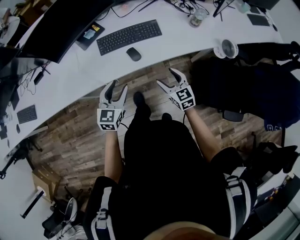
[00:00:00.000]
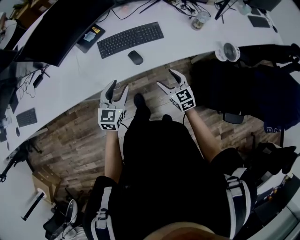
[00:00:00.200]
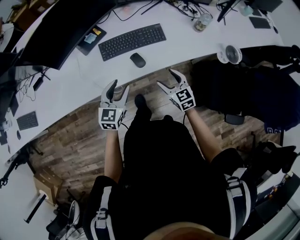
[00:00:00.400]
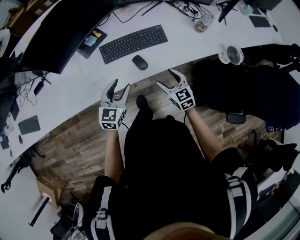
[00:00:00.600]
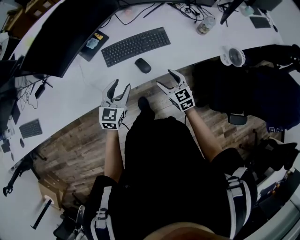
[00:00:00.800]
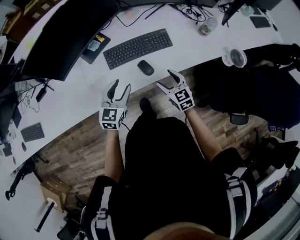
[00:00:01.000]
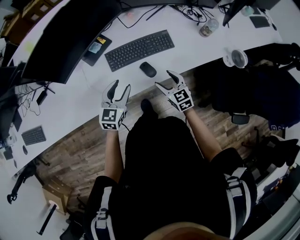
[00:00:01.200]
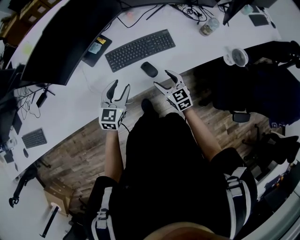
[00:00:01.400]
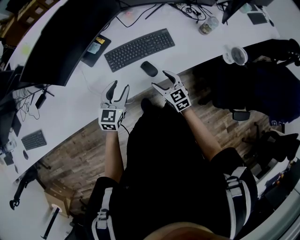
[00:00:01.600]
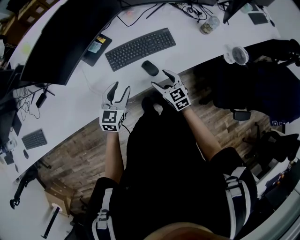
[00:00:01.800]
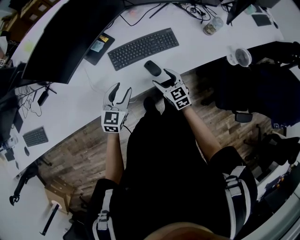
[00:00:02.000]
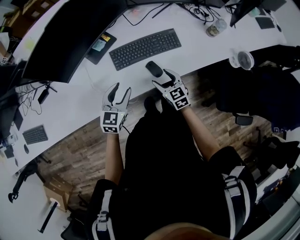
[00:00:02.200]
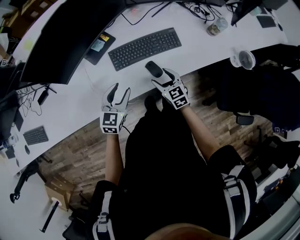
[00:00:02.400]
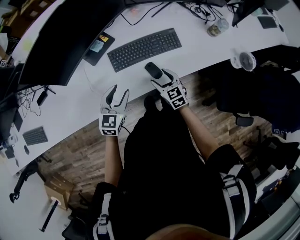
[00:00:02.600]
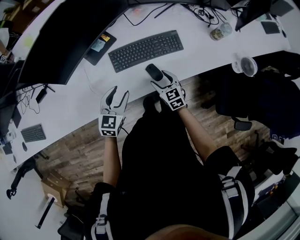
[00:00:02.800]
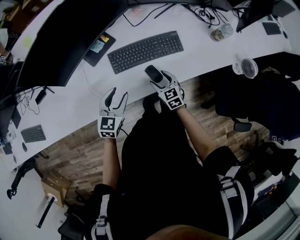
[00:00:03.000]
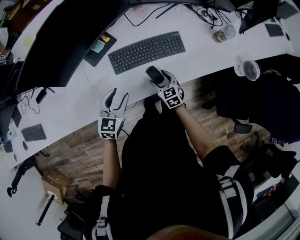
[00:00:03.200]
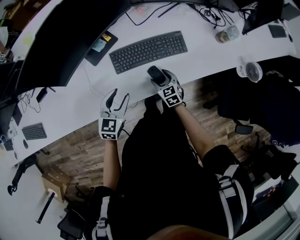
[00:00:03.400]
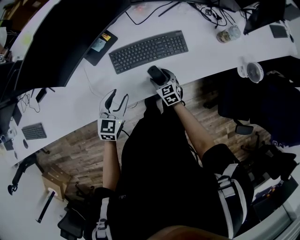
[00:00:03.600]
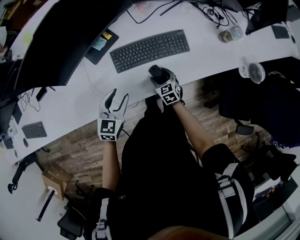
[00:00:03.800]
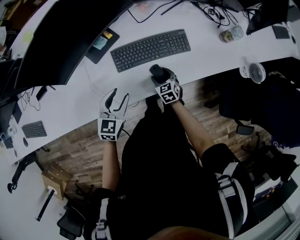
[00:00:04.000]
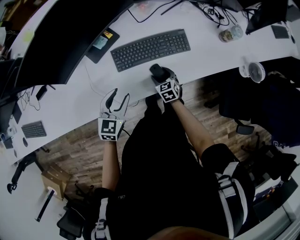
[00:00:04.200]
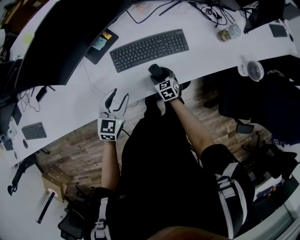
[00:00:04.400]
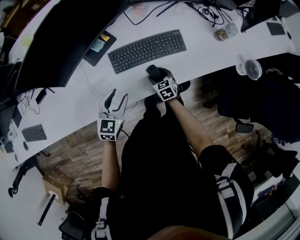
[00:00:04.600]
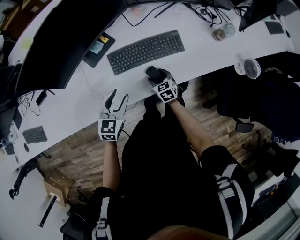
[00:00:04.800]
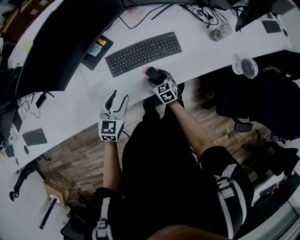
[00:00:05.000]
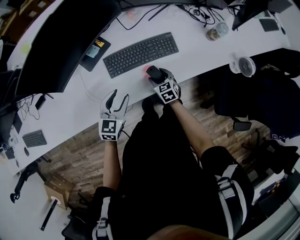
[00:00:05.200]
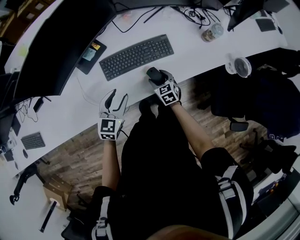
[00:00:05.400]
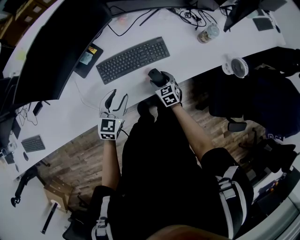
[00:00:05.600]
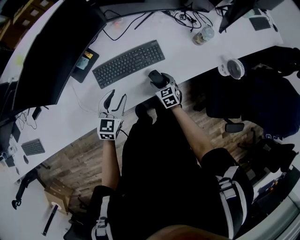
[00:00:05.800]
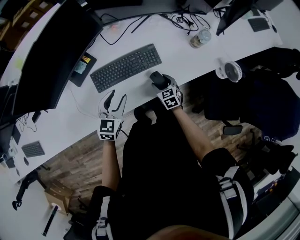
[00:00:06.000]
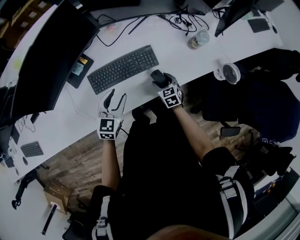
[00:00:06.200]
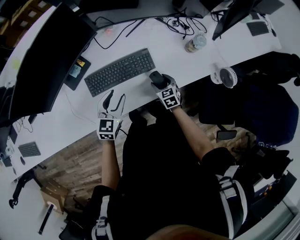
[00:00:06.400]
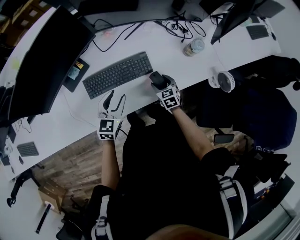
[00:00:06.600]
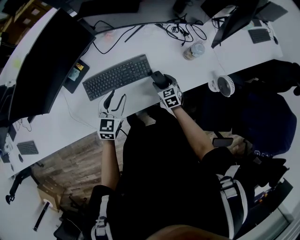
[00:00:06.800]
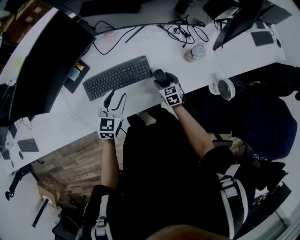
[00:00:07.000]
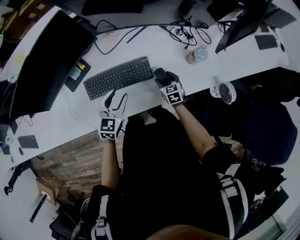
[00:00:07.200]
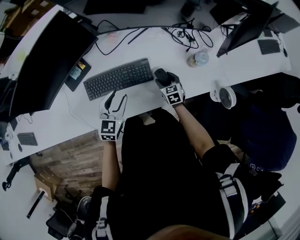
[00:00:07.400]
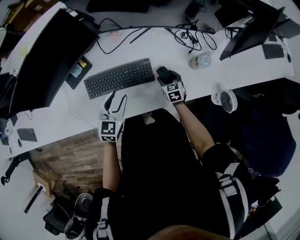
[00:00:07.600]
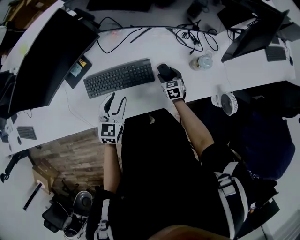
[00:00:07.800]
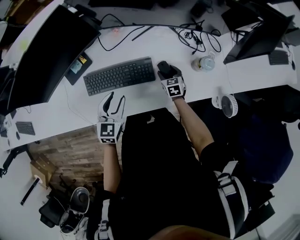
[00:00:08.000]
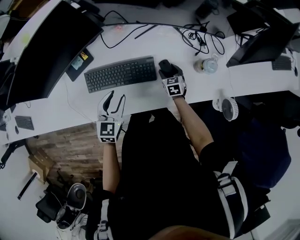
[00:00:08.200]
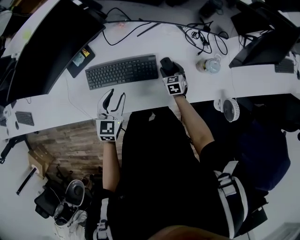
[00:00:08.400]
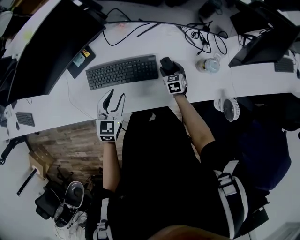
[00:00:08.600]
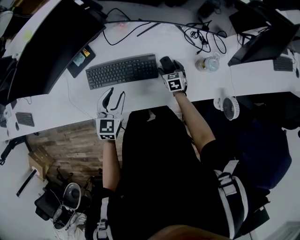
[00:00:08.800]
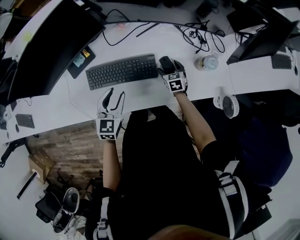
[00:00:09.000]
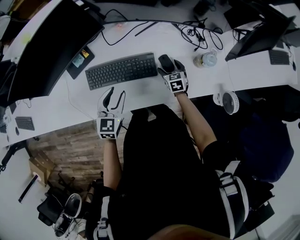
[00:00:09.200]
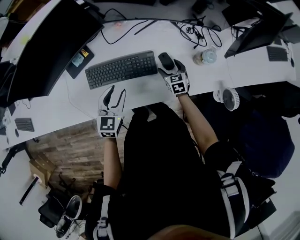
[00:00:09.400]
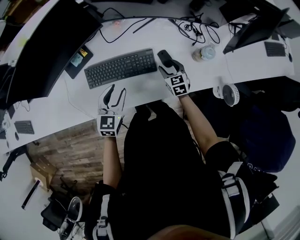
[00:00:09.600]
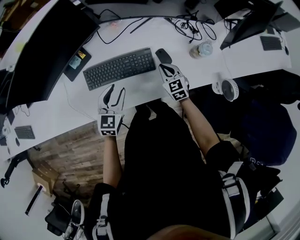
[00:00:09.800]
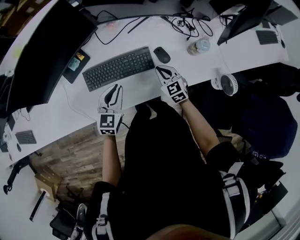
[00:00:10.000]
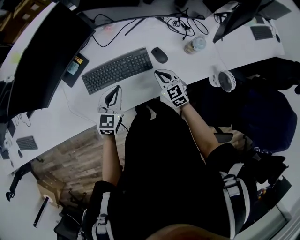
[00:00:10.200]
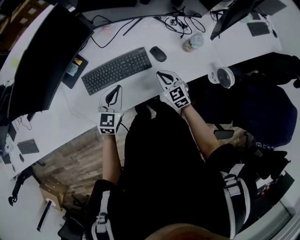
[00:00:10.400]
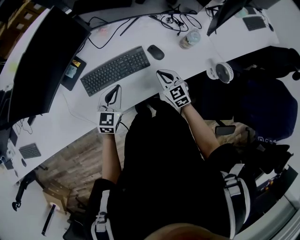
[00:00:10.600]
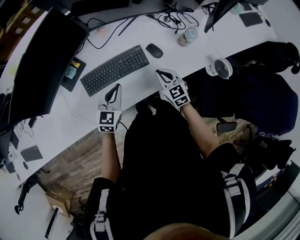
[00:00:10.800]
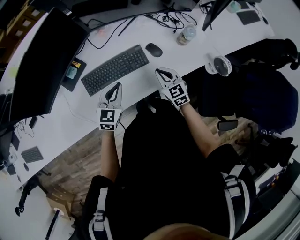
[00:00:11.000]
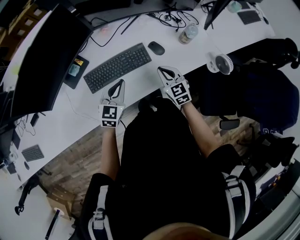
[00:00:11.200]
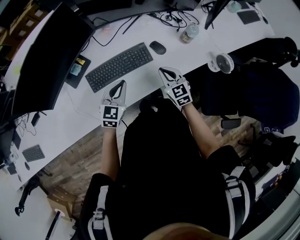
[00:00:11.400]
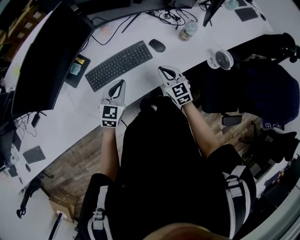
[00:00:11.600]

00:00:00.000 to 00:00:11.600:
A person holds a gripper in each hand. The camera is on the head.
00:00:00.000 to 00:00:01.400: Both grippers travel together forward and to the left, roughly 15 cm.
00:00:01.400 to 00:00:02.800: The right gripper shifts approximately 5 cm downward.
00:00:02.800 to 00:00:04.400: The right gripper travels downward by some 10 cm.
00:00:04.400 to 00:00:05.800: The right gripper heads to the right and upward, covering roughly 15 cm; the left gripper heads to the right, covering roughly 10 cm.
00:00:05.800 to 00:00:07.200: Both grippers travel together to the right and forward, about 15 cm.
00:00:07.200 to 00:00:08.800: The right gripper travels forward and downward by some 10 cm.
00:00:08.800 to 00:00:10.200: The left gripper closes up; the right gripper goes about 20 cm upward and backward, rotates about 20 degrees, and closes up.
00:00:10.200 to 00:00:11.600: The right gripper is displaced backward by roughly 5 cm.

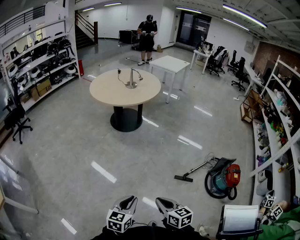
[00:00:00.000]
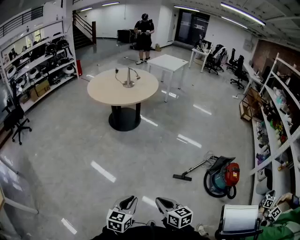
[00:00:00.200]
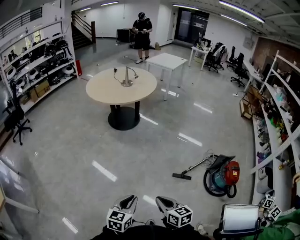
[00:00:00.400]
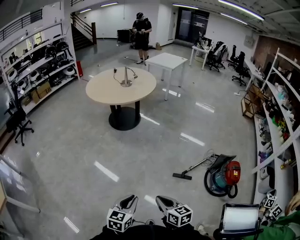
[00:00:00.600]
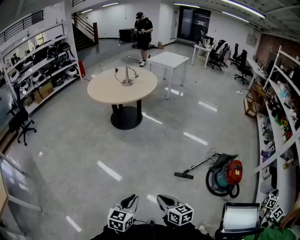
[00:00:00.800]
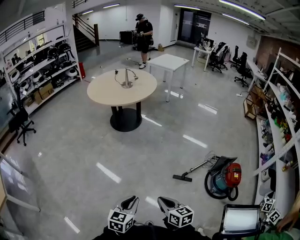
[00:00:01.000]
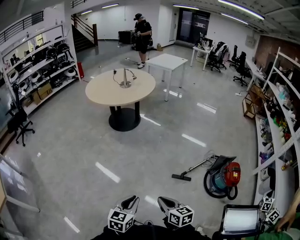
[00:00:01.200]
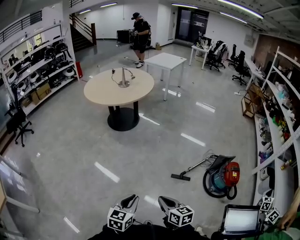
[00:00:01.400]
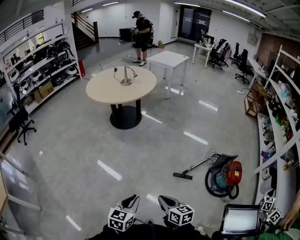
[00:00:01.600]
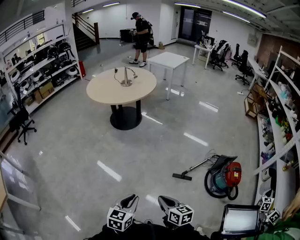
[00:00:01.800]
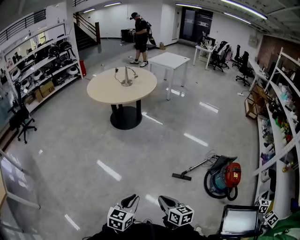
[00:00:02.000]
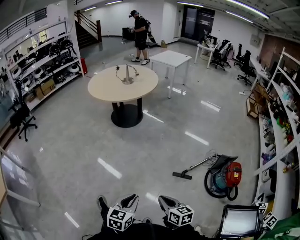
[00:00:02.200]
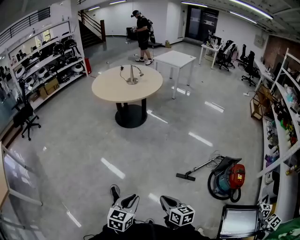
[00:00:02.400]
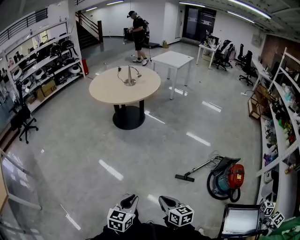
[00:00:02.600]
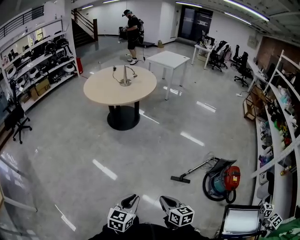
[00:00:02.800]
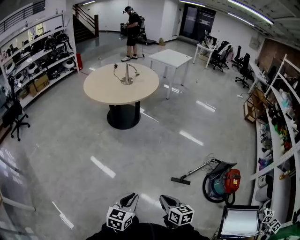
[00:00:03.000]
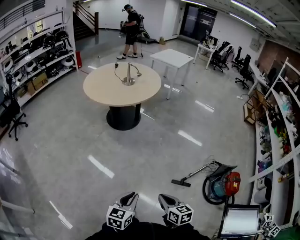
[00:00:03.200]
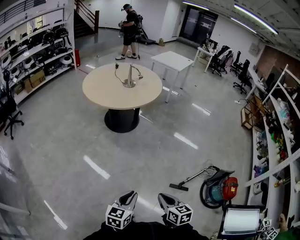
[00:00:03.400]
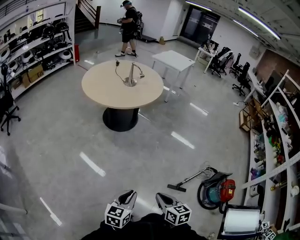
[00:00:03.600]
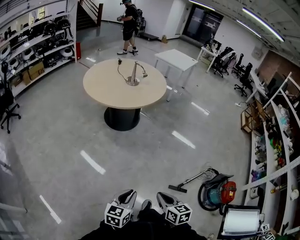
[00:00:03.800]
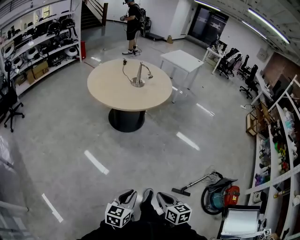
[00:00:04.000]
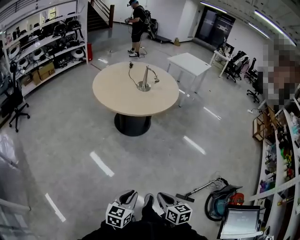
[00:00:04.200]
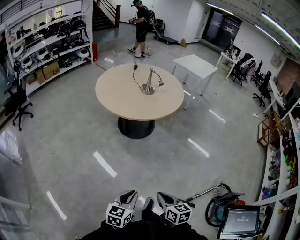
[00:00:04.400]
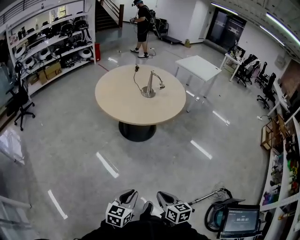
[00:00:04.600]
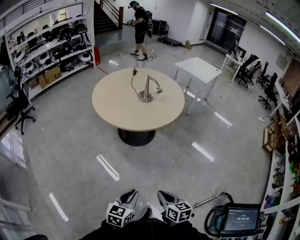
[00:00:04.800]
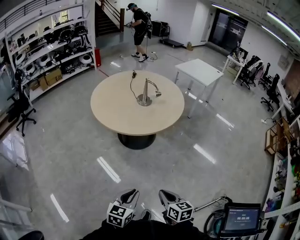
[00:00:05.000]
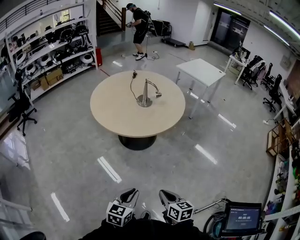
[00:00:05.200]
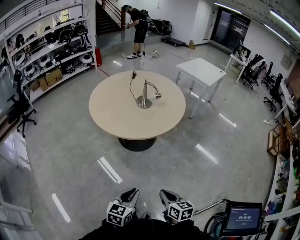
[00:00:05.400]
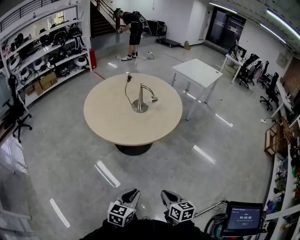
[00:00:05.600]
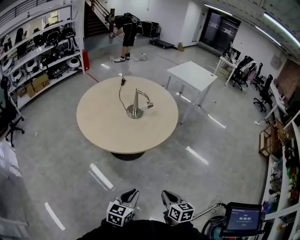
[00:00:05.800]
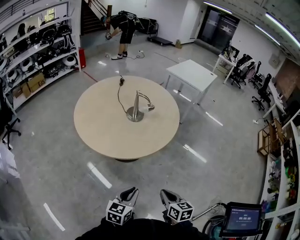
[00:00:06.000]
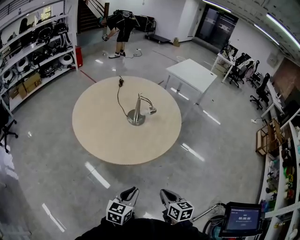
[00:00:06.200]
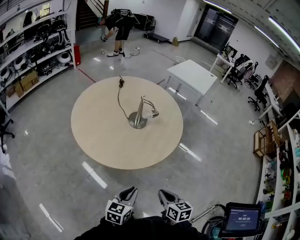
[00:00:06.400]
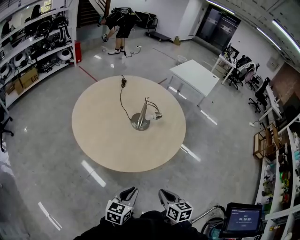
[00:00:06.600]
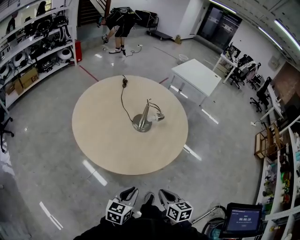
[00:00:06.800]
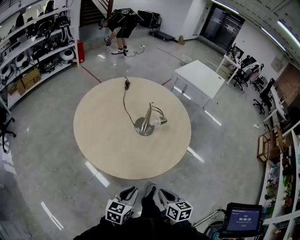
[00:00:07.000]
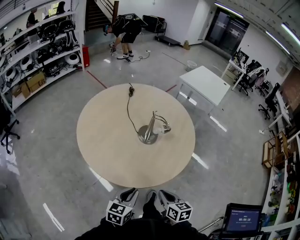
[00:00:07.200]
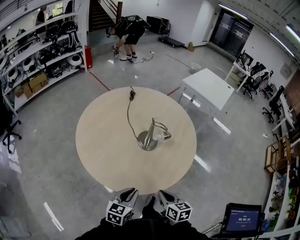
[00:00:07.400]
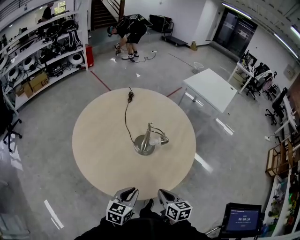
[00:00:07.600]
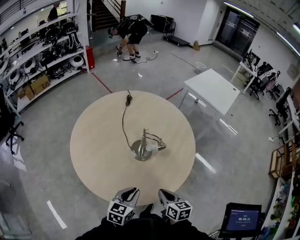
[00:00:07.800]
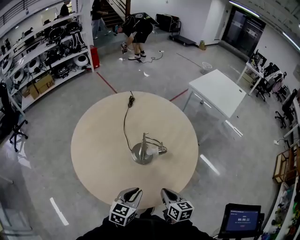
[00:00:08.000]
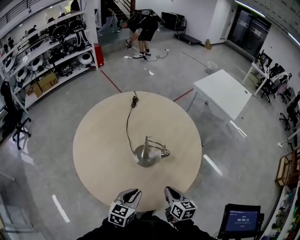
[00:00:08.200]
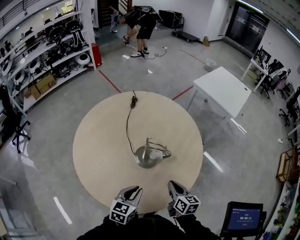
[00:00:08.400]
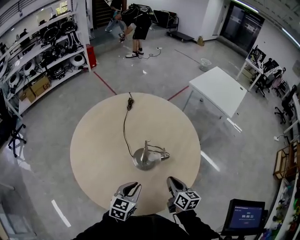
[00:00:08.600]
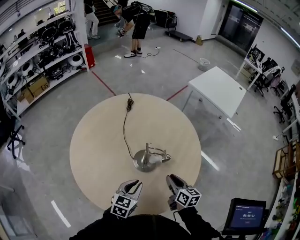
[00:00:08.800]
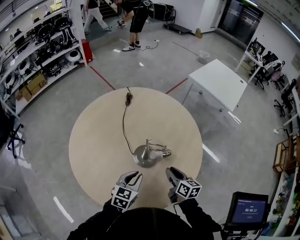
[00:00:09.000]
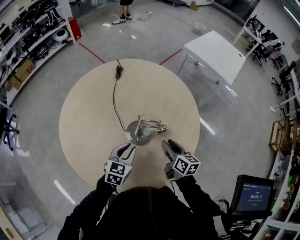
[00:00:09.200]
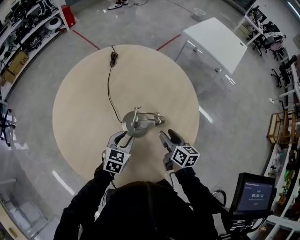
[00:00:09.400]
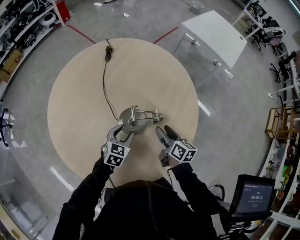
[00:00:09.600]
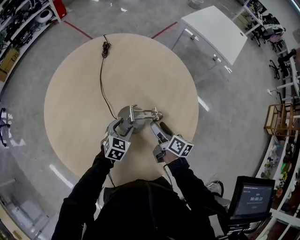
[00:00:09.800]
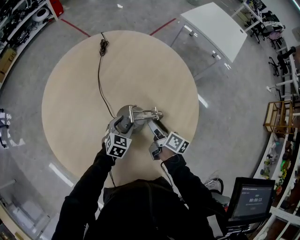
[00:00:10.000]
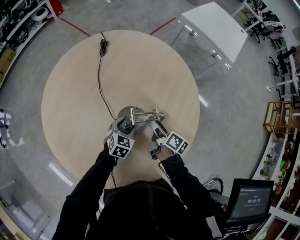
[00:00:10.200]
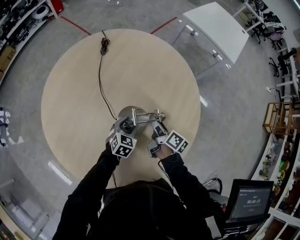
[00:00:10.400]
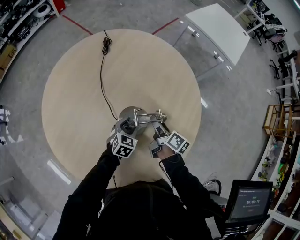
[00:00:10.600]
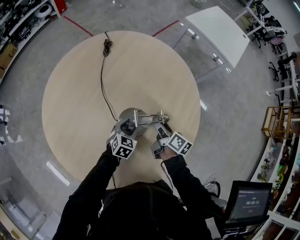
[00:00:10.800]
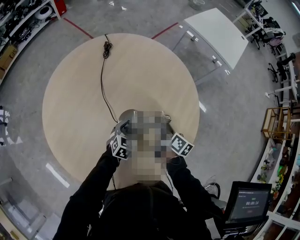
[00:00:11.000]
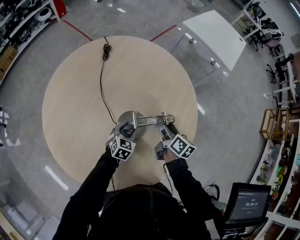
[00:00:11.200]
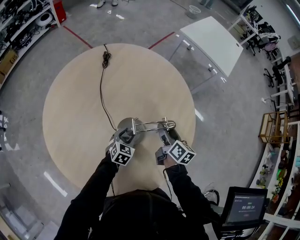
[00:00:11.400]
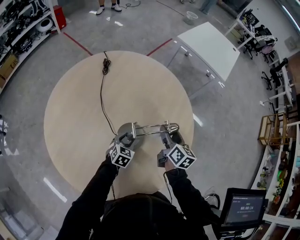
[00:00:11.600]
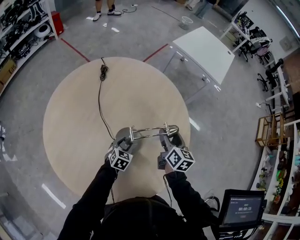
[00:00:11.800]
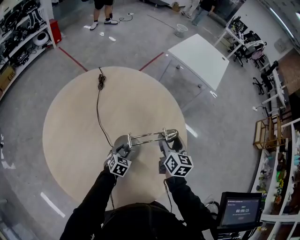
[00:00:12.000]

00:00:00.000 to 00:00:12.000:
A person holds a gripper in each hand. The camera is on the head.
00:00:00.000 to 00:00:01.600: The grippers both shift to the right by about 10 cm.
00:00:01.600 to 00:00:03.000: Both grippers move forward, approximately 10 cm.
00:00:03.000 to 00:00:04.400: Both grippers move forward and to the left, some 30 cm.
00:00:04.400 to 00:00:06.000: The two grippers go roughly 35 cm forward.
00:00:06.000 to 00:00:07.600: The two grippers go about 30 cm forward.
00:00:07.600 to 00:00:09.000: Both grippers travel together forward, roughly 20 cm.
00:00:09.000 to 00:00:10.400: The right gripper travels forward and downward by some 15 cm, rotates about 40 degrees, and opens. The left gripper shifts approximately 20 cm downward and forward, and opens its fingers.
00:00:10.400 to 00:00:12.000: The right gripper shifts approximately 15 cm upward, and rolls counterclockwise, seen from behind, by approximately 50 degrees.
